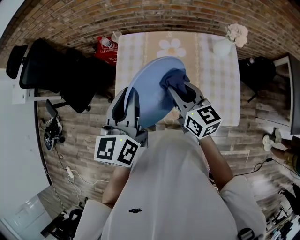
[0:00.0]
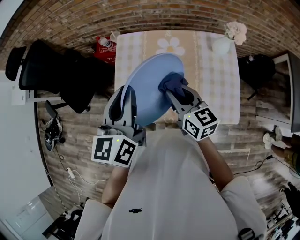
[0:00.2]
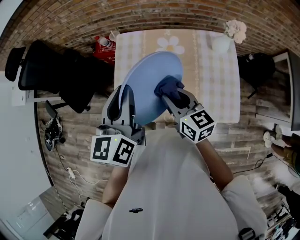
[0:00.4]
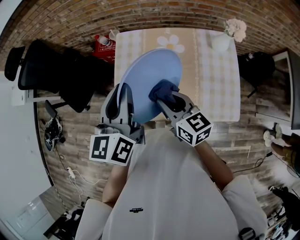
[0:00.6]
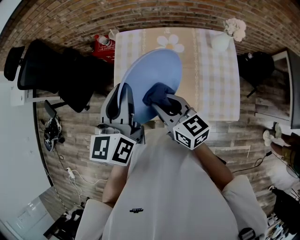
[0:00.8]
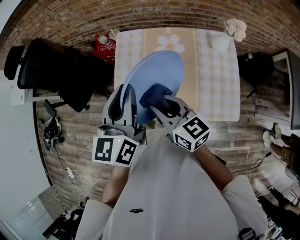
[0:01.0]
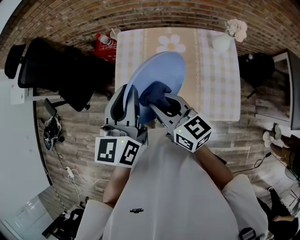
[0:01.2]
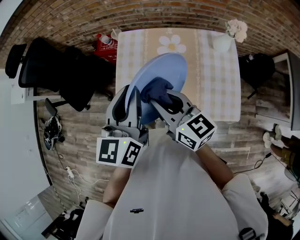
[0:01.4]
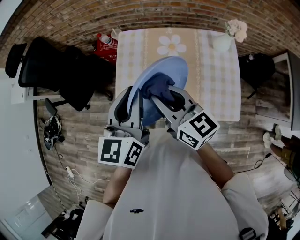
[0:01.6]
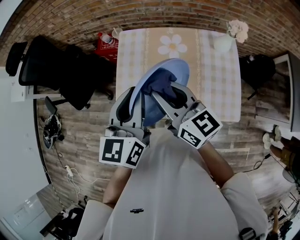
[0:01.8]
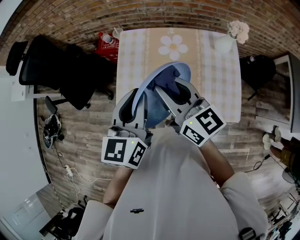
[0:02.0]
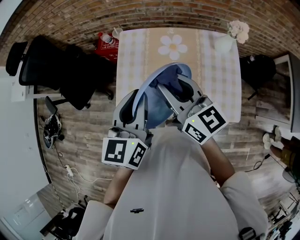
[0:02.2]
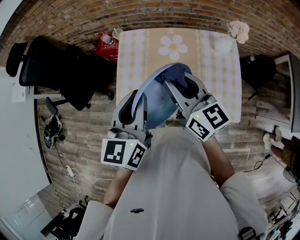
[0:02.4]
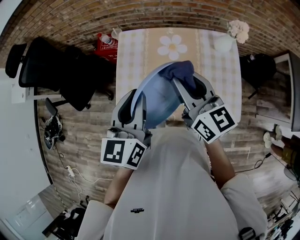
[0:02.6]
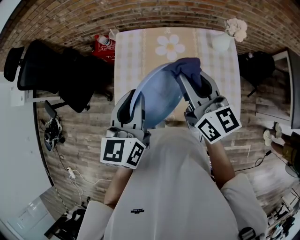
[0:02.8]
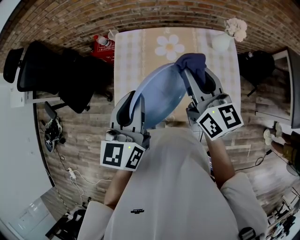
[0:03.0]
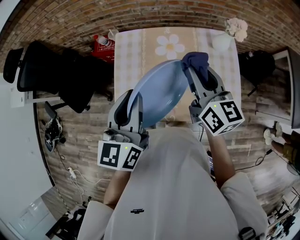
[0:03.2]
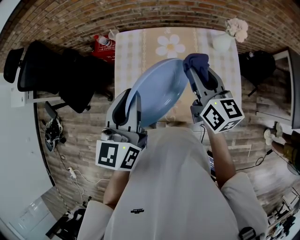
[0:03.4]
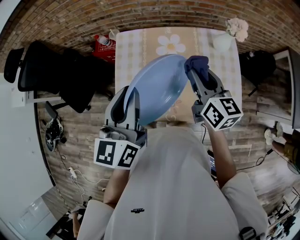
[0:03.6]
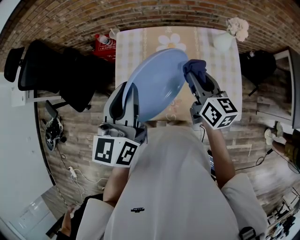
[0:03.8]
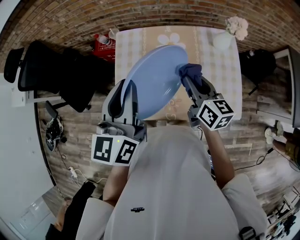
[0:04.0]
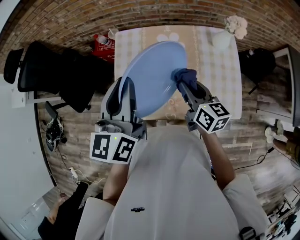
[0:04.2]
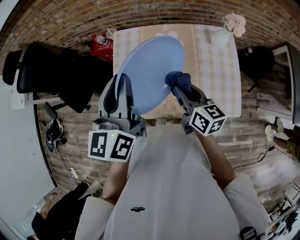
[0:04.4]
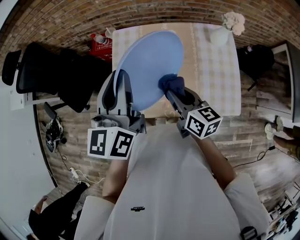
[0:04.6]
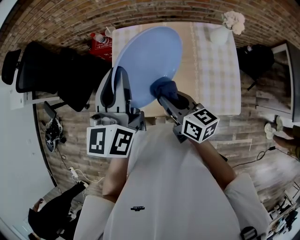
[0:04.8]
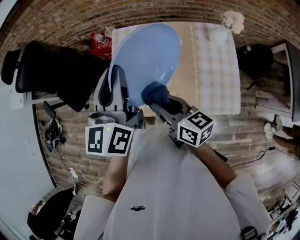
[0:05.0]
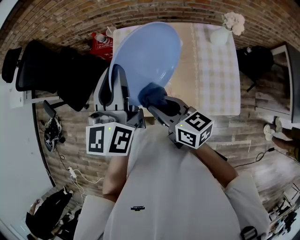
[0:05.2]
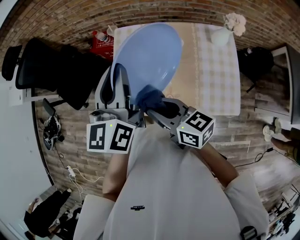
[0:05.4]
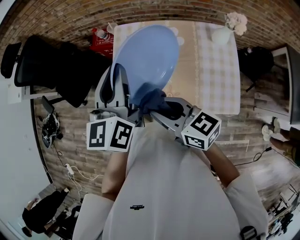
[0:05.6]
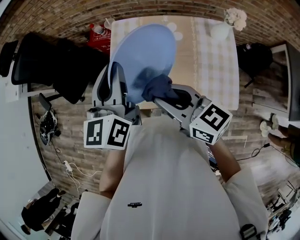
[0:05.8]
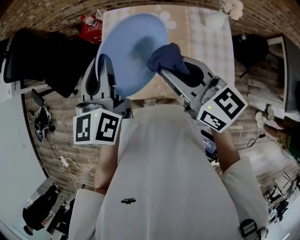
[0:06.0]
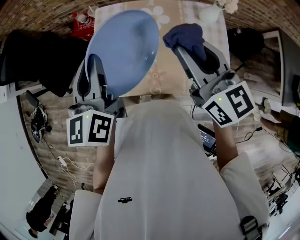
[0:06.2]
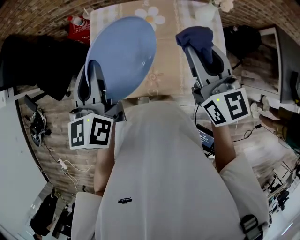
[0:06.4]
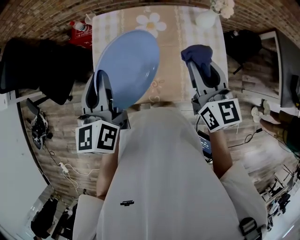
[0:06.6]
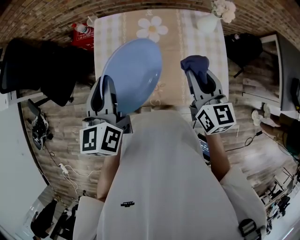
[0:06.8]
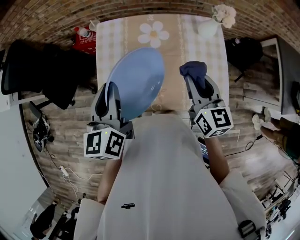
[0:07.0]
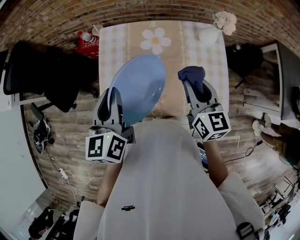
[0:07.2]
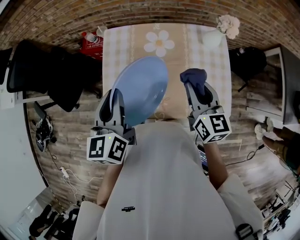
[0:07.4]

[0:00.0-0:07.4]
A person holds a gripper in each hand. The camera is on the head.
0:00.0 to 0:01.4: The right gripper moves to the left, roughly 10 cm.
0:01.4 to 0:03.0: The right gripper goes about 15 cm to the right and forward, and swivels some 20 degrees.
0:03.0 to 0:04.4: The left gripper changes place by roughly 5 cm. Meanwhile the right gripper goes approximately 15 cm downward, and rotates about 20 degrees.
0:04.4 to 0:06.0: The right gripper heads upward, covering about 15 cm, and swivels about 30 degrees.
0:06.0 to 0:07.4: The left gripper travels downward by approximately 5 cm; the right gripper heads to the right and downward, covering approximately 15 cm, and rotates roughly 30 degrees.

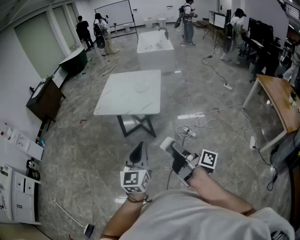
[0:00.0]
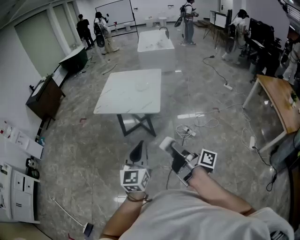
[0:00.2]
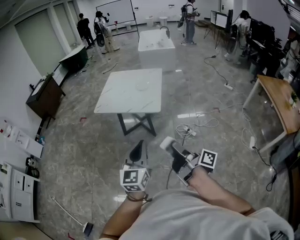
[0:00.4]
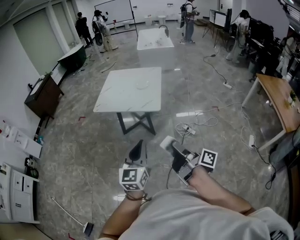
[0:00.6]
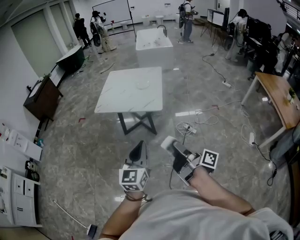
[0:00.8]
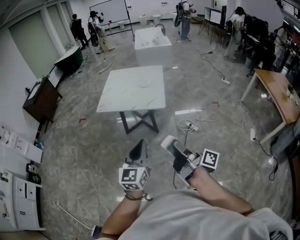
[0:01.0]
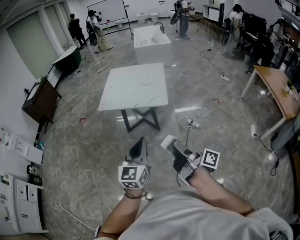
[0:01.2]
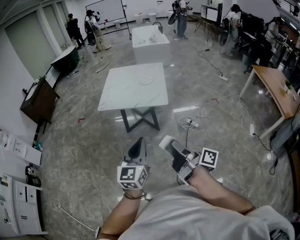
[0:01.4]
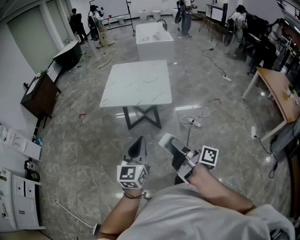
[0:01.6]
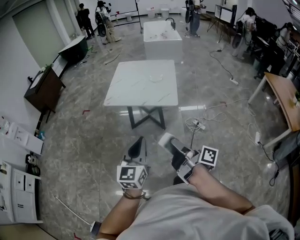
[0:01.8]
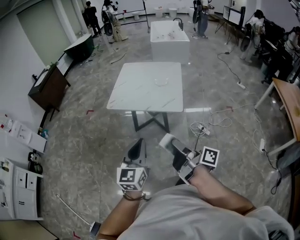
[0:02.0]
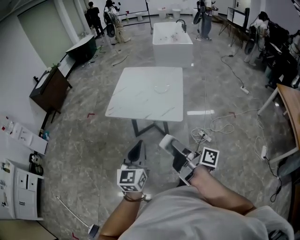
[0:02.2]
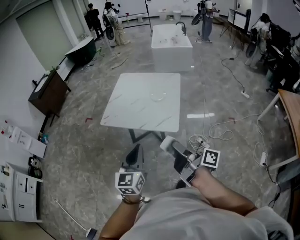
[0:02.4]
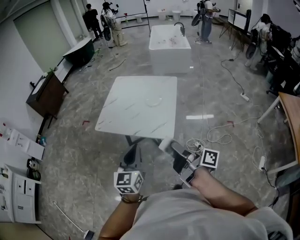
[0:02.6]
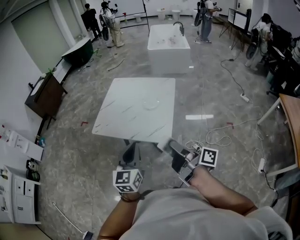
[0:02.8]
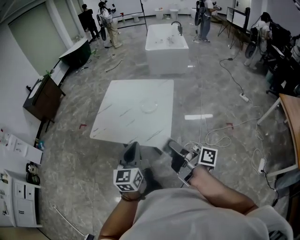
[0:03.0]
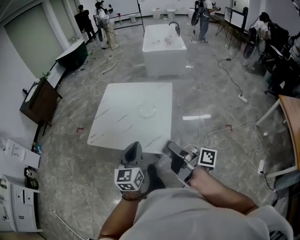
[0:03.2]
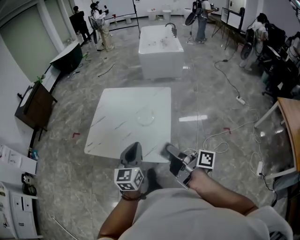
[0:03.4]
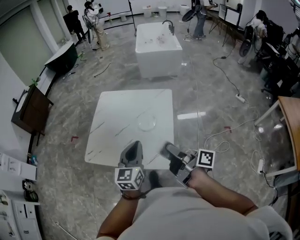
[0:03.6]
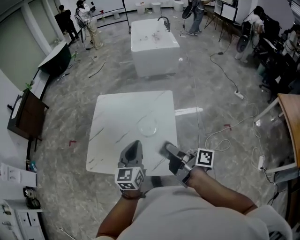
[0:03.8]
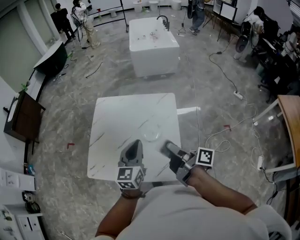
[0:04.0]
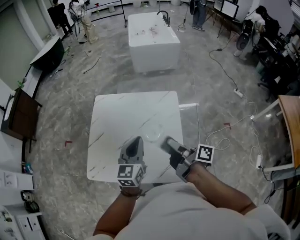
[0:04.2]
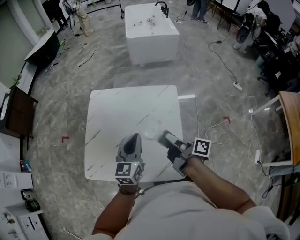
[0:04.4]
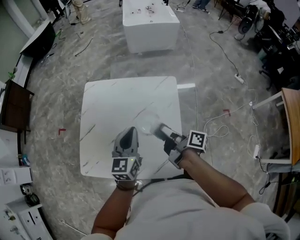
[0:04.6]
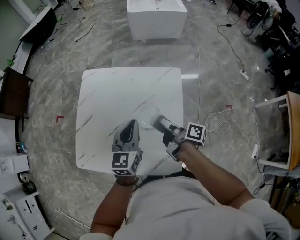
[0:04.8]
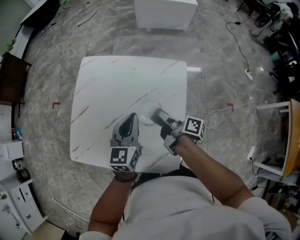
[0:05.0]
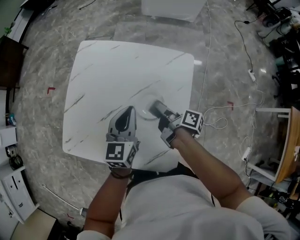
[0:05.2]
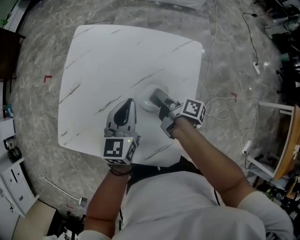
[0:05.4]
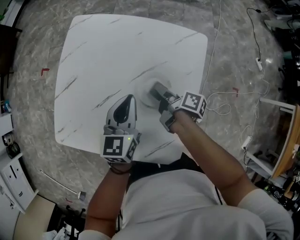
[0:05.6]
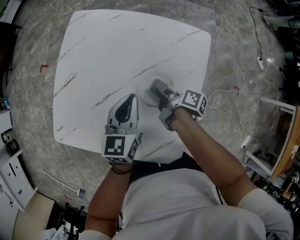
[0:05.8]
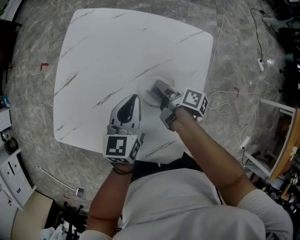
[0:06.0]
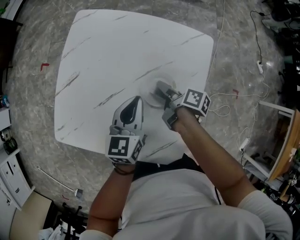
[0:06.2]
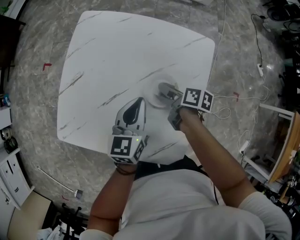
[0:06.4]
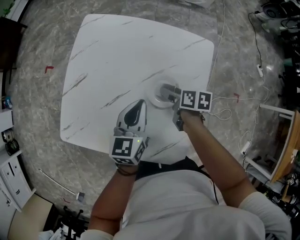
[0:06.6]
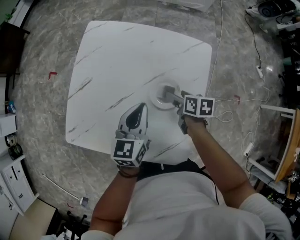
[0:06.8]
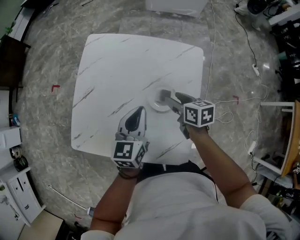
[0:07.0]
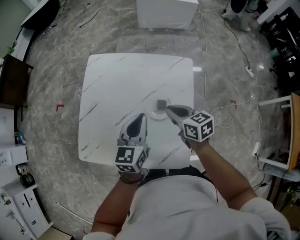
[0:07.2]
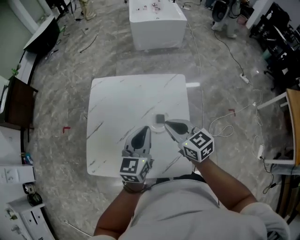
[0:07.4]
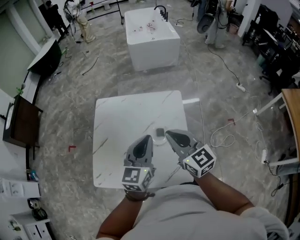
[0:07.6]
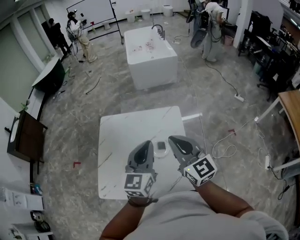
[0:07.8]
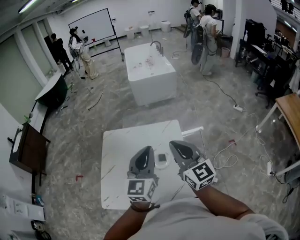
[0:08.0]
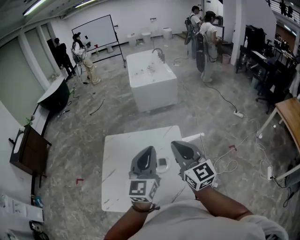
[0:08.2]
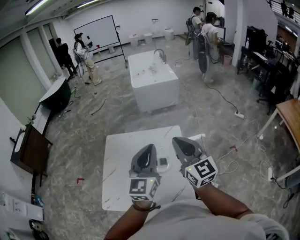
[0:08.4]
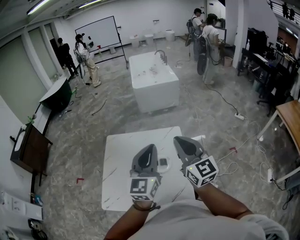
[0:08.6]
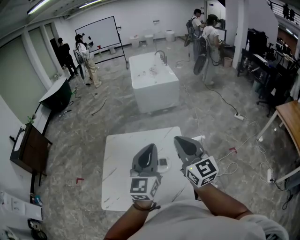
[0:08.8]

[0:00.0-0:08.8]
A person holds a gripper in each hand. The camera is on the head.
0:00.0 to 0:01.4: The left gripper changes place by some 15 cm.
0:01.4 to 0:03.0: The left gripper changes place by roughly 40 cm.
0:03.0 to 0:04.4: The left gripper moves approximately 40 cm.
0:04.4 to 0:05.8: The left gripper shifts approximately 20 cm downward.
0:05.8 to 0:07.4: The left gripper travels upward by some 20 cm.
0:07.4 to 0:08.8: The left gripper travels upward by about 25 cm, and rotates approximately 30 degrees.

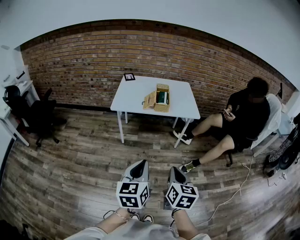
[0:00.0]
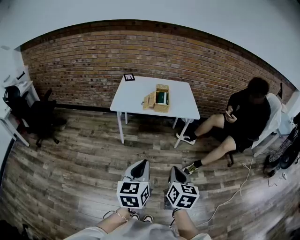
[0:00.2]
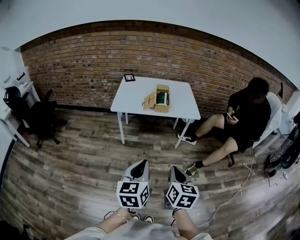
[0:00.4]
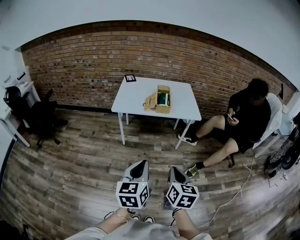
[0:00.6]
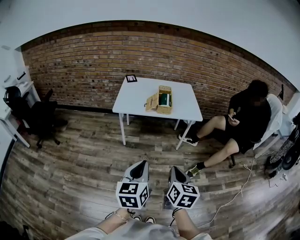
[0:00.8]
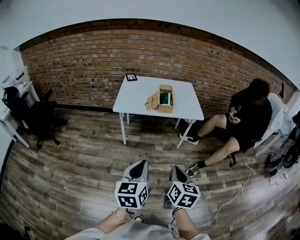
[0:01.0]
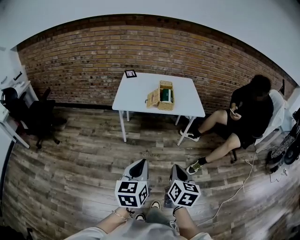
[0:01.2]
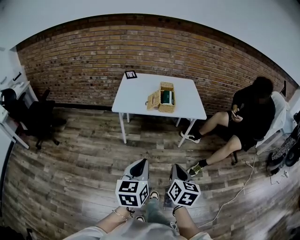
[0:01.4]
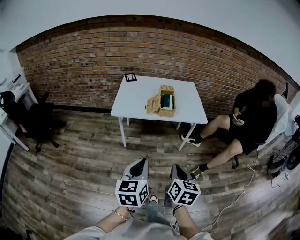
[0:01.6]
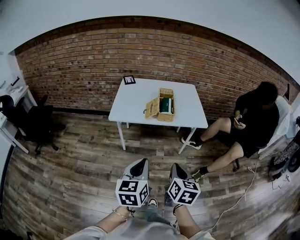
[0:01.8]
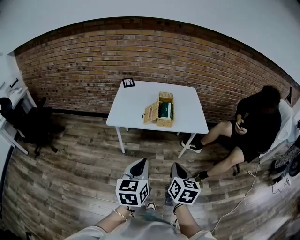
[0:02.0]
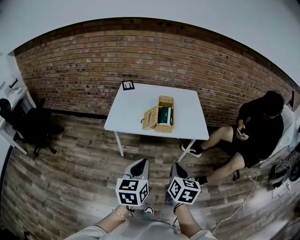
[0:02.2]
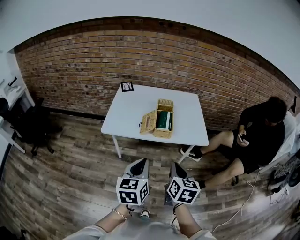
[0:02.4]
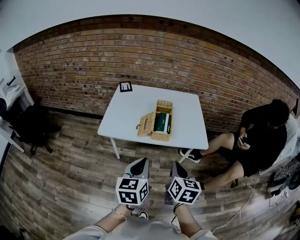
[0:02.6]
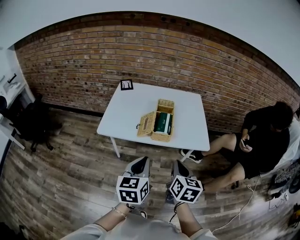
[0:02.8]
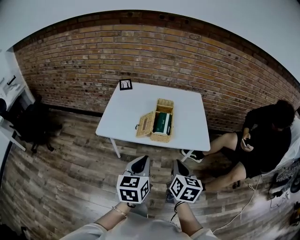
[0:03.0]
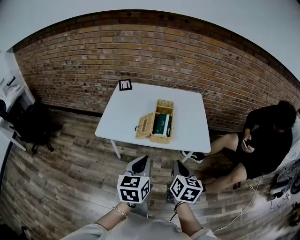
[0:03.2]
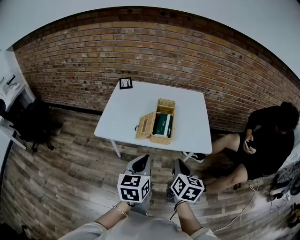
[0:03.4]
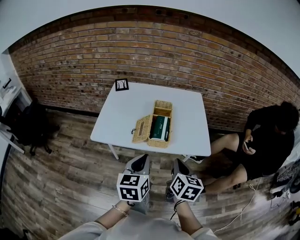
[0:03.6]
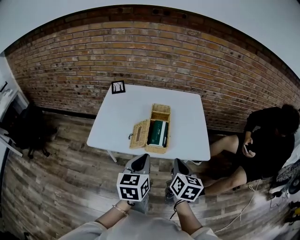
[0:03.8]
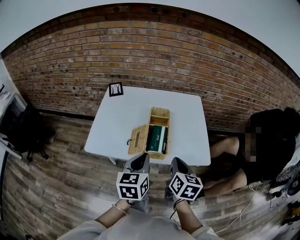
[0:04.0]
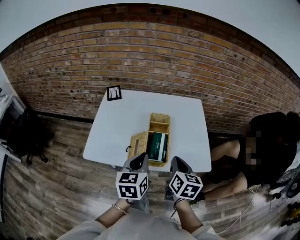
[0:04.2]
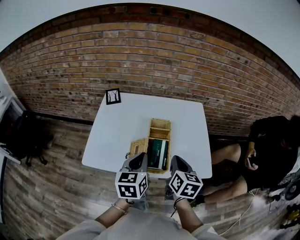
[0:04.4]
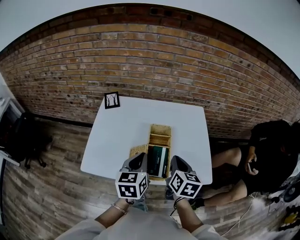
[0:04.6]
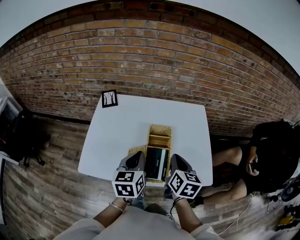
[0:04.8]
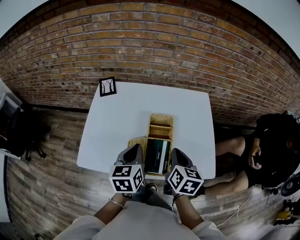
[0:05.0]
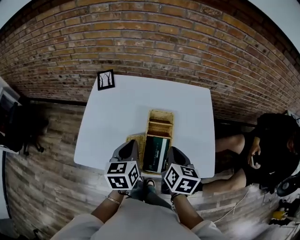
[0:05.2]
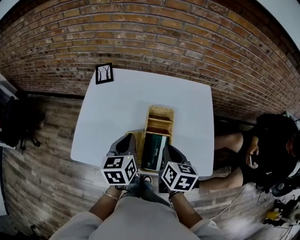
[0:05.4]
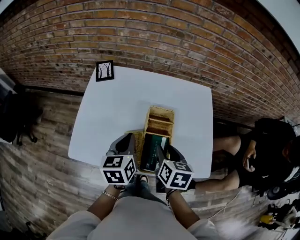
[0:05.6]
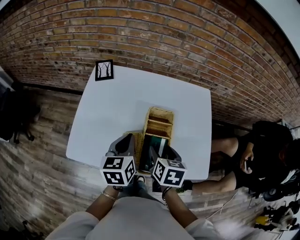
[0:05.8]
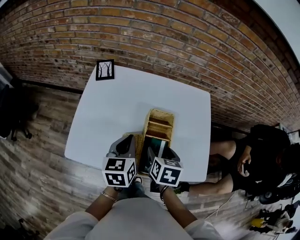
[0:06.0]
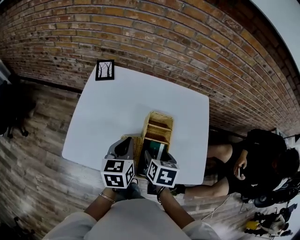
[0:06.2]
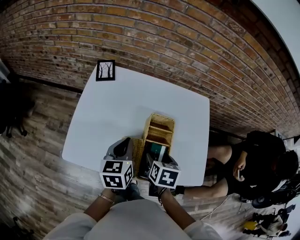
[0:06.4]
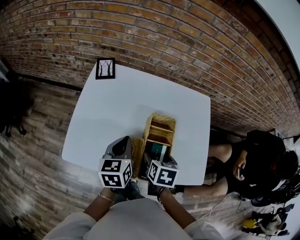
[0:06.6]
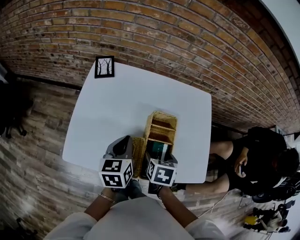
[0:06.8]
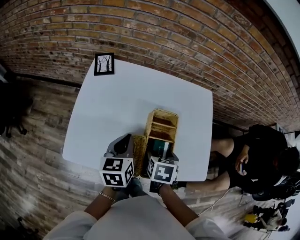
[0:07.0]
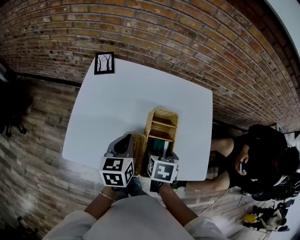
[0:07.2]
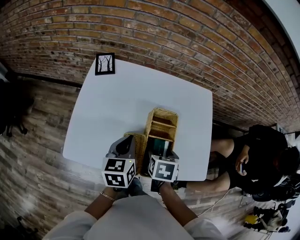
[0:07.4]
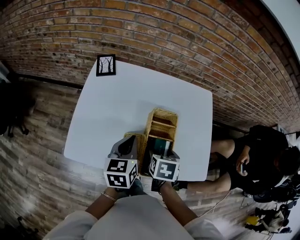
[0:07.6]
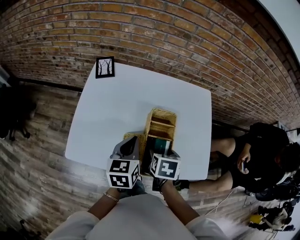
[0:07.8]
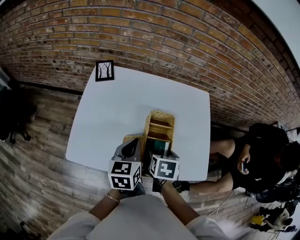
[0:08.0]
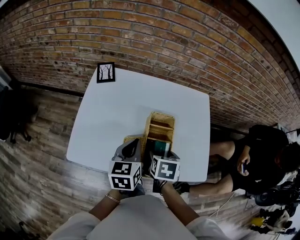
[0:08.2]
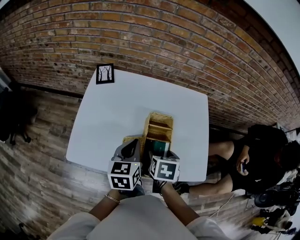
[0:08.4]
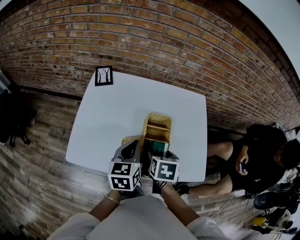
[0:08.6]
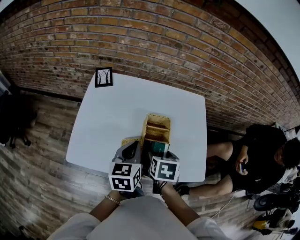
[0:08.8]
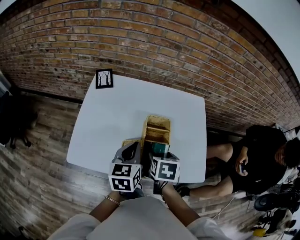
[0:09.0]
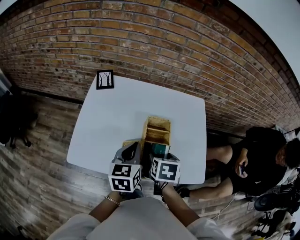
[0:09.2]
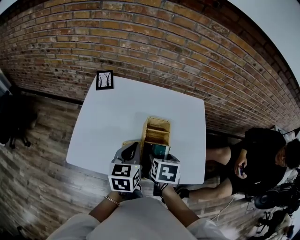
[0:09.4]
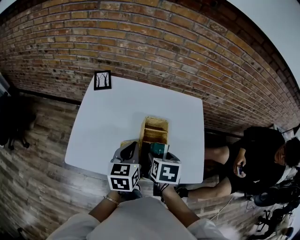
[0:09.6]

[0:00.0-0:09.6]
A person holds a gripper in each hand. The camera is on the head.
0:00.0 to 0:01.6: Both grippers travel together forward, roughly 10 cm.
0:01.6 to 0:03.2: The grippers both shift forward by about 30 cm.
0:03.2 to 0:04.8: Both grippers move forward, some 30 cm.
0:04.8 to 0:06.4: The left gripper shifts roughly 10 cm downward and forward. The right gripper shifts about 10 cm downward and to the left, changes its angle by about 30 degrees, and opens its fingers.
0:06.4 to 0:08.0: There are only small adjustments of the grippers.
0:08.0 to 0:09.6: The right gripper moves roughly 5 cm.
